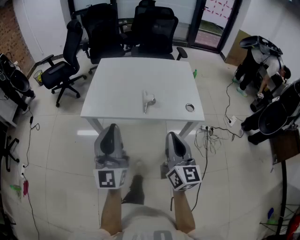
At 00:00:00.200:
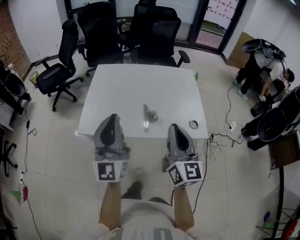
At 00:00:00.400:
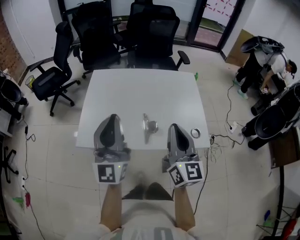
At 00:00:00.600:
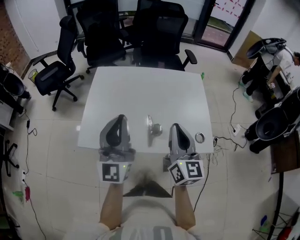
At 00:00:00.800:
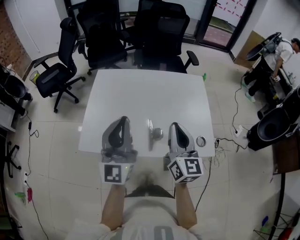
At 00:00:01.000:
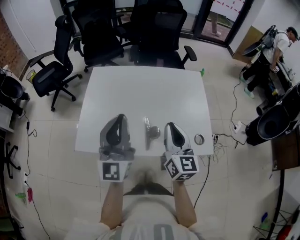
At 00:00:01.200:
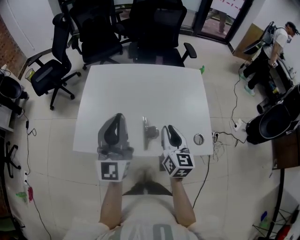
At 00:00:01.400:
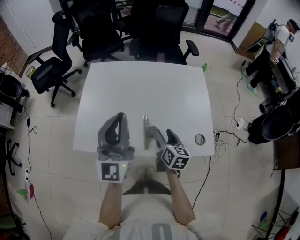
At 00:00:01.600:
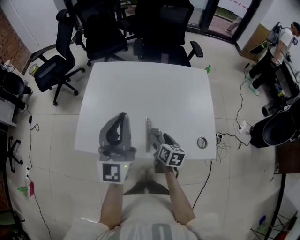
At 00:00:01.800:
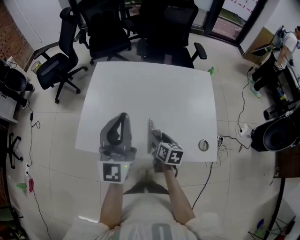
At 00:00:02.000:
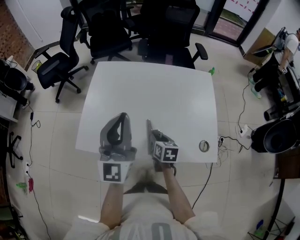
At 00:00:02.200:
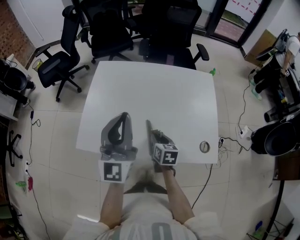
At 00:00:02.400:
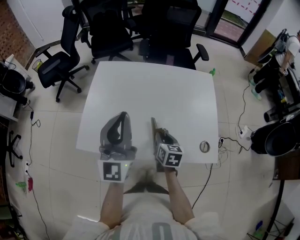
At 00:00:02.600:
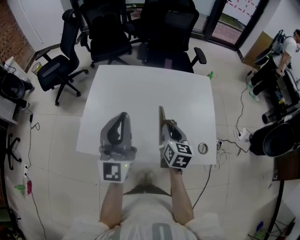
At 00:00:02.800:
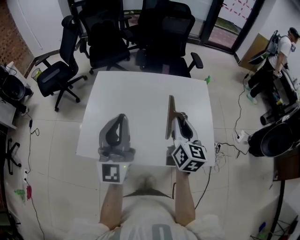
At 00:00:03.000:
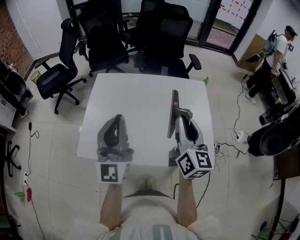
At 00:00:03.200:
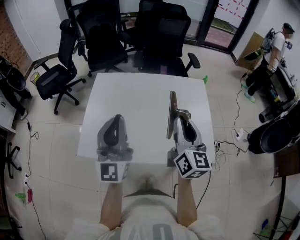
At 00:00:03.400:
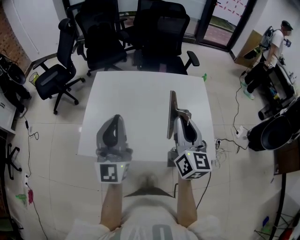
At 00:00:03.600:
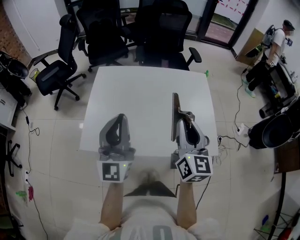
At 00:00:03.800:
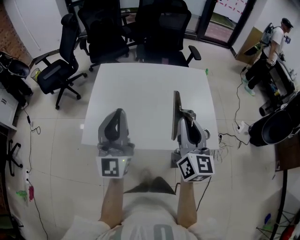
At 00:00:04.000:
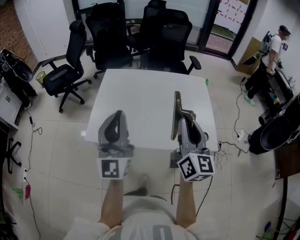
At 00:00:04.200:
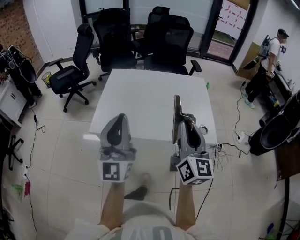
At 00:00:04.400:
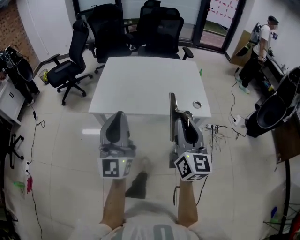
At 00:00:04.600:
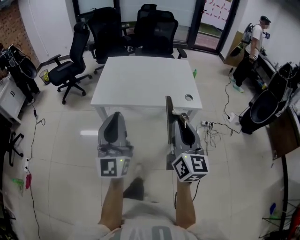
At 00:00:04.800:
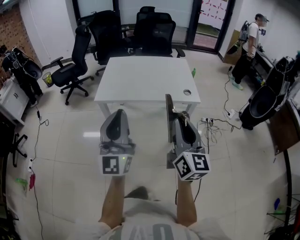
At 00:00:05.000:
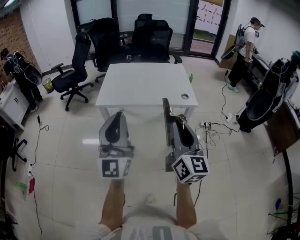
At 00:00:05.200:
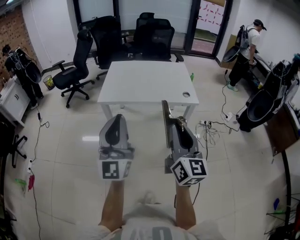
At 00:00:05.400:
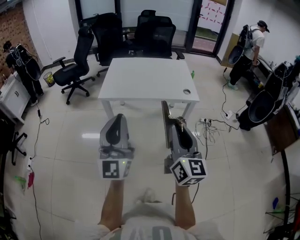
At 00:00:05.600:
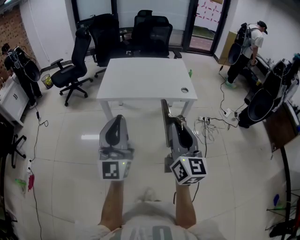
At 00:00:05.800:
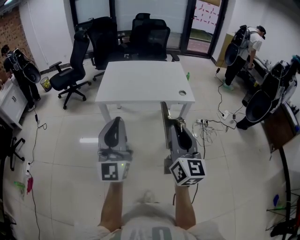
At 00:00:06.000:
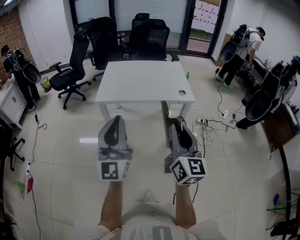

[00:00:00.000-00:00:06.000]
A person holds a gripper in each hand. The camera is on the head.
00:00:00.000 to 00:00:01.600: The left gripper shifts some 30 cm forward; the right gripper moves forward and downward, about 35 cm, points its fingers about 40 degrees further downward, and opens.
00:00:01.600 to 00:00:03.000: The right gripper is displaced upward by some 25 cm, points its fingers some 40 degrees further upward, and closes.
00:00:03.000 to 00:00:04.400: Both grippers travel together backward, roughly 30 cm.
00:00:04.400 to 00:00:06.000: The grippers both shift backward by about 20 cm.

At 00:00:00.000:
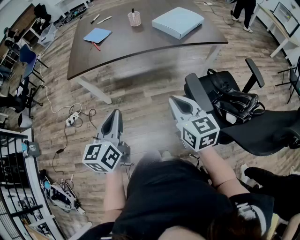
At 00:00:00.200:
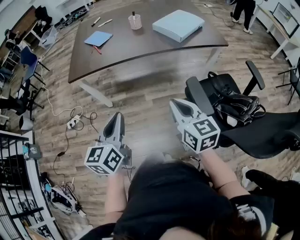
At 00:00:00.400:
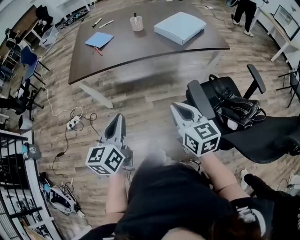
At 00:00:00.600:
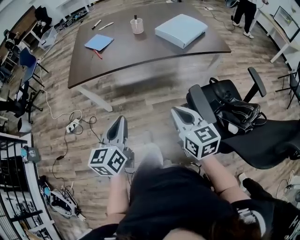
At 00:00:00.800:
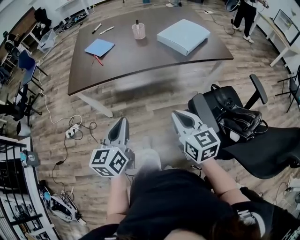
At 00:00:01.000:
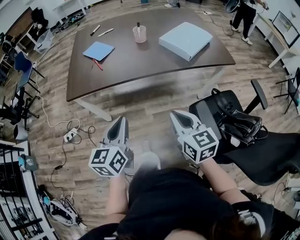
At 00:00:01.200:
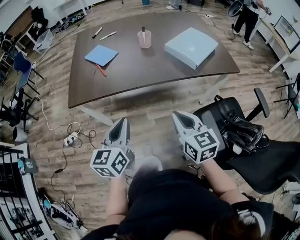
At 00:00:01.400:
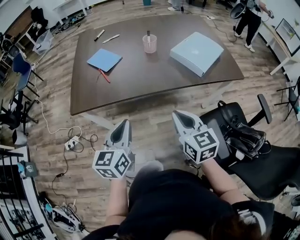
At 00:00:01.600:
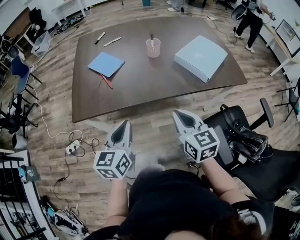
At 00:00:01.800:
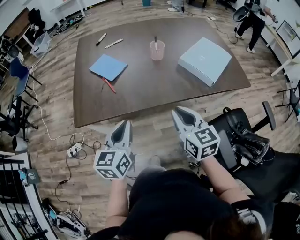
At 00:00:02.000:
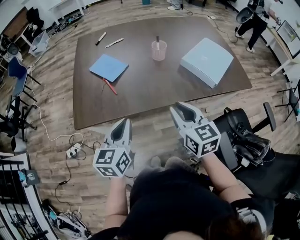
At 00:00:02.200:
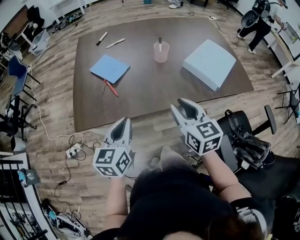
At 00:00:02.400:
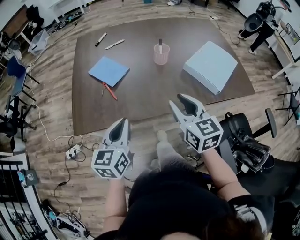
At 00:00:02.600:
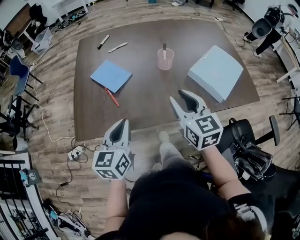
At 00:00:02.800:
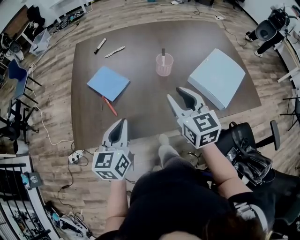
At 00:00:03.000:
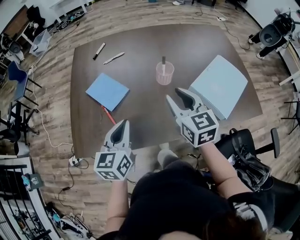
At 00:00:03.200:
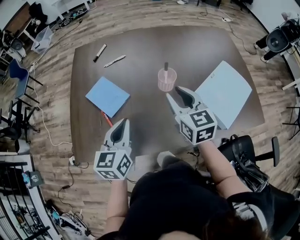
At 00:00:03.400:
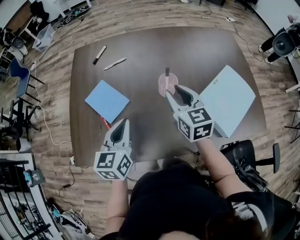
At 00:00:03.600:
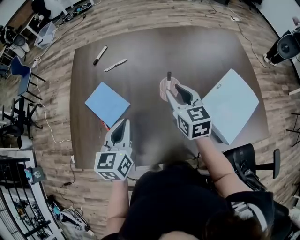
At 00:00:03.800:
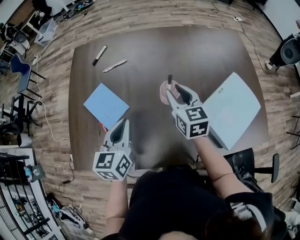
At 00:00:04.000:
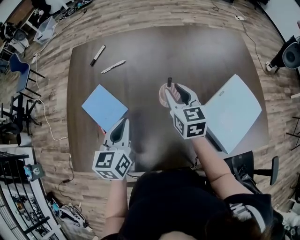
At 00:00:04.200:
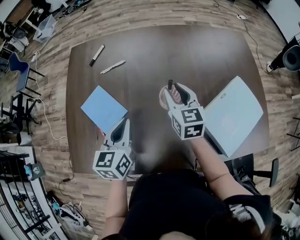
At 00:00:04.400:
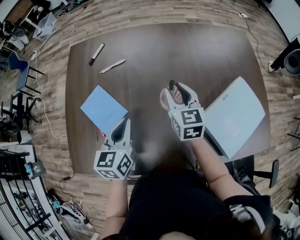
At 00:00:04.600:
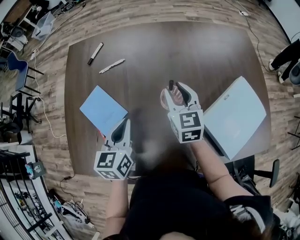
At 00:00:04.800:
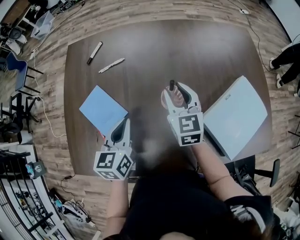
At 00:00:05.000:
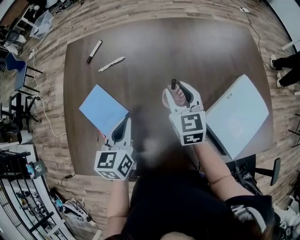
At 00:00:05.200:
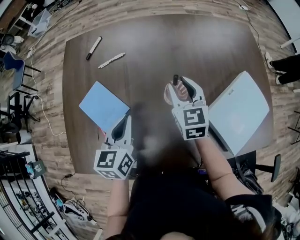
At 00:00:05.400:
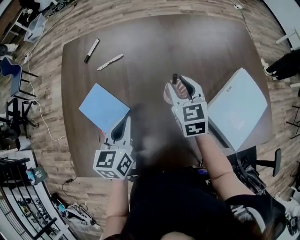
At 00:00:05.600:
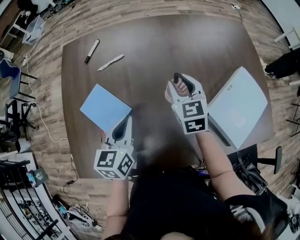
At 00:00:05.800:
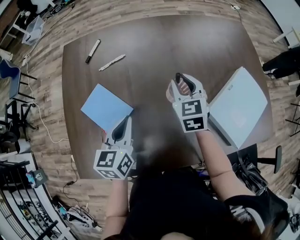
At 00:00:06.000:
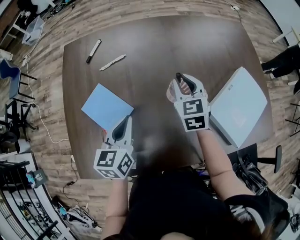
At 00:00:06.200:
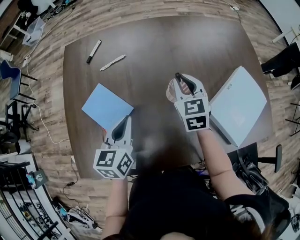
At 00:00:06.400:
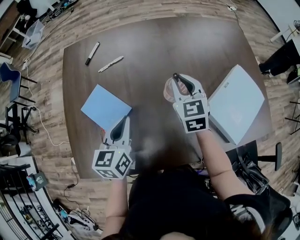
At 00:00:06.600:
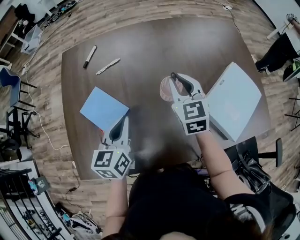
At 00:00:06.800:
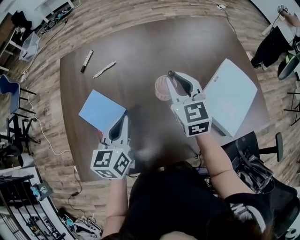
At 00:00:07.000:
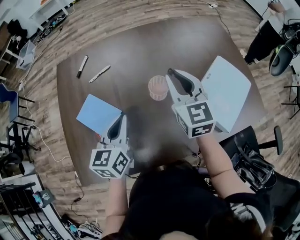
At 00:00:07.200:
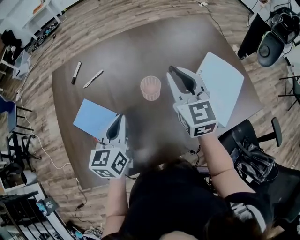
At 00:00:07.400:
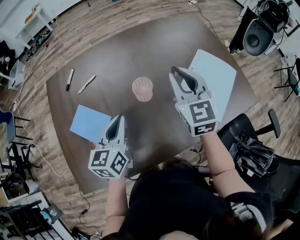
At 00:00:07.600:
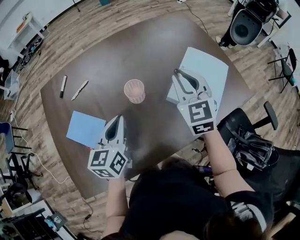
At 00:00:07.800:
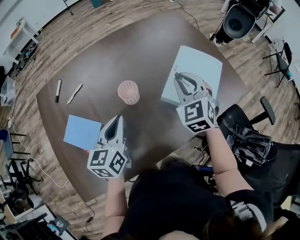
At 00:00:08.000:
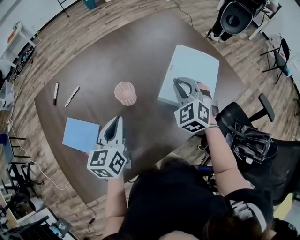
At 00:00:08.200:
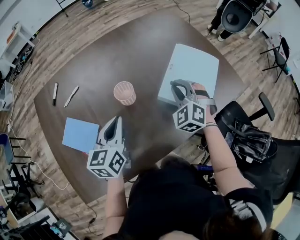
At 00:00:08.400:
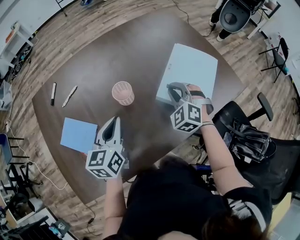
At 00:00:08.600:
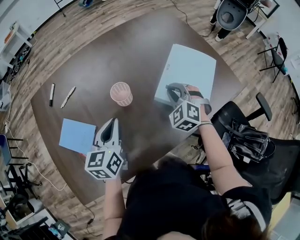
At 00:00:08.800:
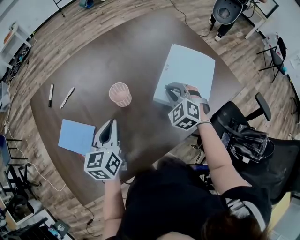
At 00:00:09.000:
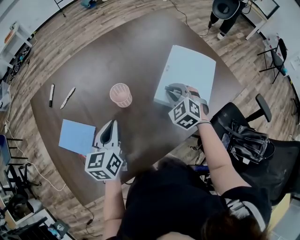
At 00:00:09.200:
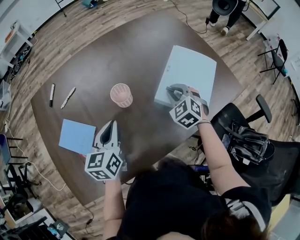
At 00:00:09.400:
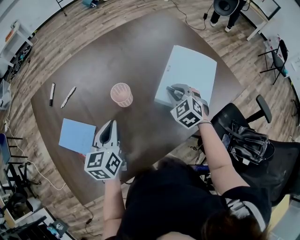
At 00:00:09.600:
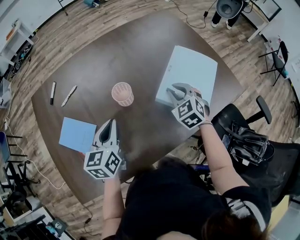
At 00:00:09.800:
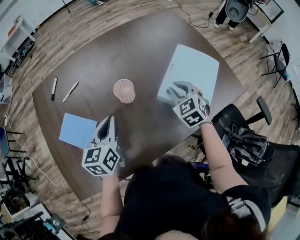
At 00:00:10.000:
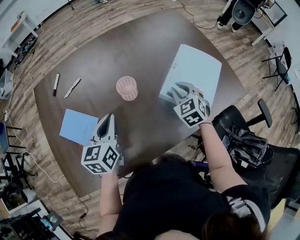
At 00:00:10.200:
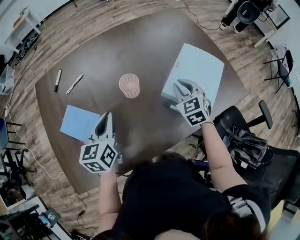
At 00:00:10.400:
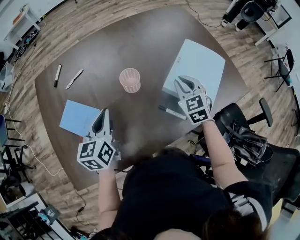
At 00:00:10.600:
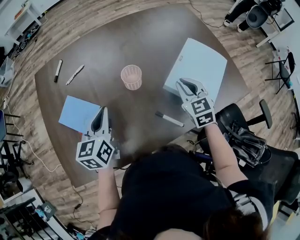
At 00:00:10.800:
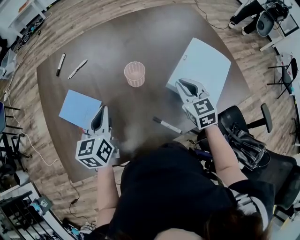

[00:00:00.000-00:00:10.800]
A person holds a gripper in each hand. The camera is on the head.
00:00:00.000 to 00:00:01.600: Both grippers move forward, about 25 cm.
00:00:01.600 to 00:00:03.000: Both grippers move forward, approximately 25 cm. The right gripper opens its fingers.
00:00:03.000 to 00:00:04.600: The right gripper heads forward and downward, covering about 20 cm. The left gripper travels forward by approximately 15 cm.
00:00:04.600 to 00:00:06.200: The grippers stay close to where they were, moving slightly.
00:00:06.200 to 00:00:07.800: The left gripper heads to the right, covering roughly 10 cm, and changes its angle by approximately 20 degrees; the right gripper moves to the right, backward and upward, some 20 cm, and changes its angle by some 30 degrees.
00:00:07.800 to 00:00:09.200: The right gripper travels downward by some 10 cm.
00:00:09.200 to 00:00:10.800: The right gripper ends up some 5 cm from where it was, and swivels about 30 degrees, while the left gripper shifts about 5 cm to the left.

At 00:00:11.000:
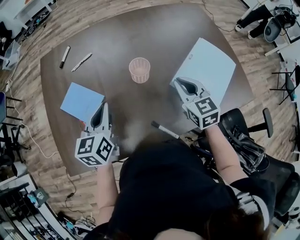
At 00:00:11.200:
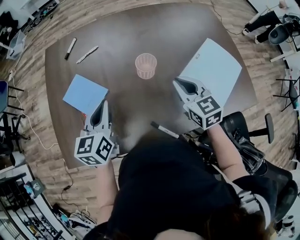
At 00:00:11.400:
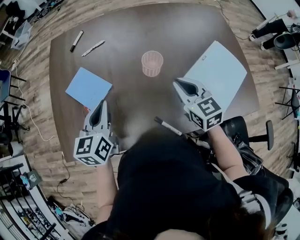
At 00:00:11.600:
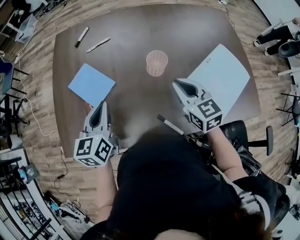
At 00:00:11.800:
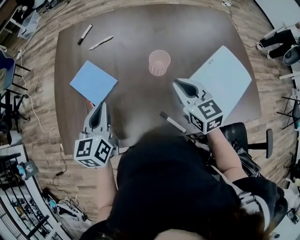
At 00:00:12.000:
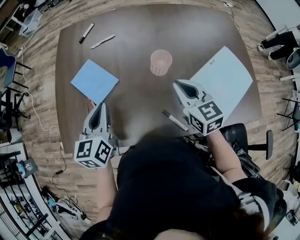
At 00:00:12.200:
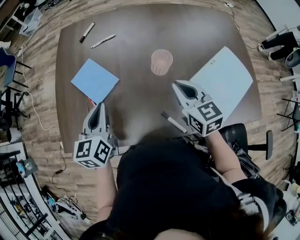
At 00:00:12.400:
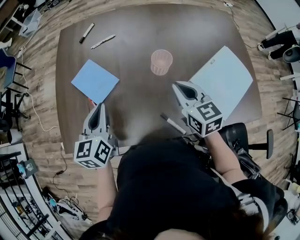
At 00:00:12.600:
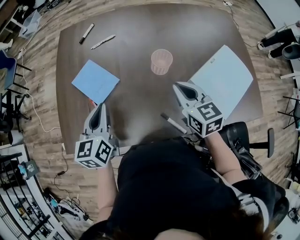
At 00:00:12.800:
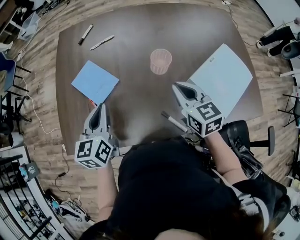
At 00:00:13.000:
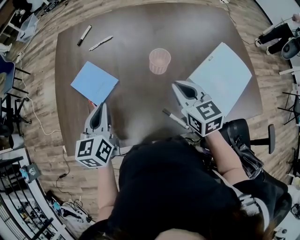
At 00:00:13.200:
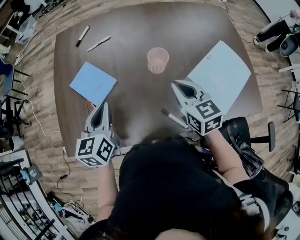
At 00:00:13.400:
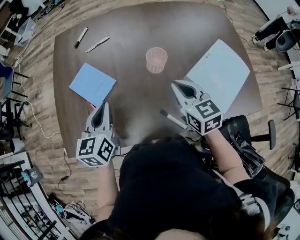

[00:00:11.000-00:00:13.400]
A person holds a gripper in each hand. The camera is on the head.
00:00:11.000 to 00:00:12.200: Both grippers move to the left, about 10 cm.
00:00:12.200 to 00:00:13.400: The grippers make only small movements.

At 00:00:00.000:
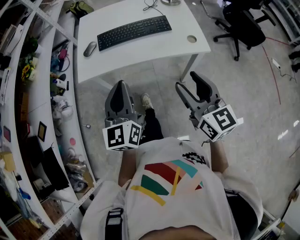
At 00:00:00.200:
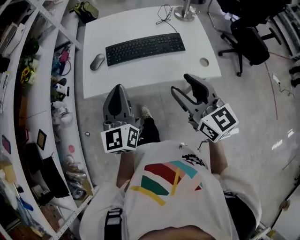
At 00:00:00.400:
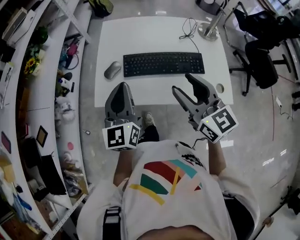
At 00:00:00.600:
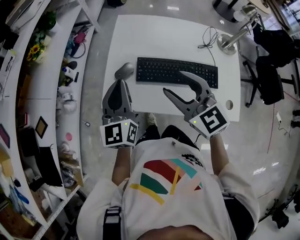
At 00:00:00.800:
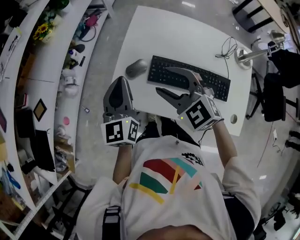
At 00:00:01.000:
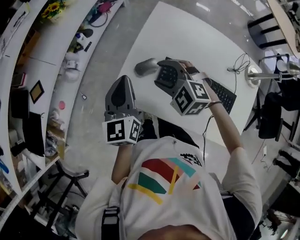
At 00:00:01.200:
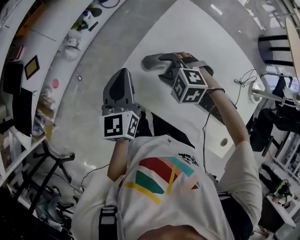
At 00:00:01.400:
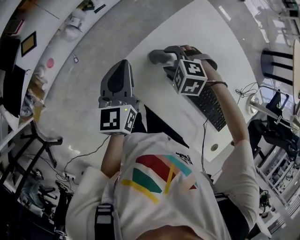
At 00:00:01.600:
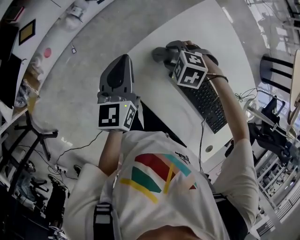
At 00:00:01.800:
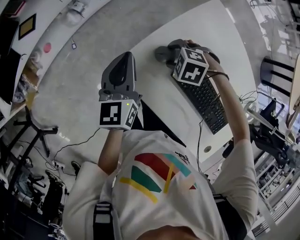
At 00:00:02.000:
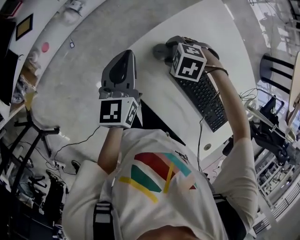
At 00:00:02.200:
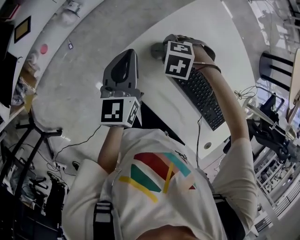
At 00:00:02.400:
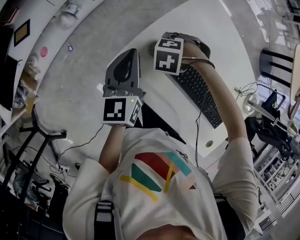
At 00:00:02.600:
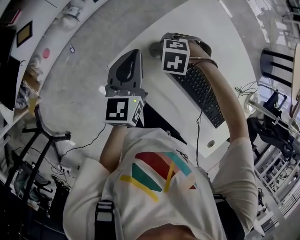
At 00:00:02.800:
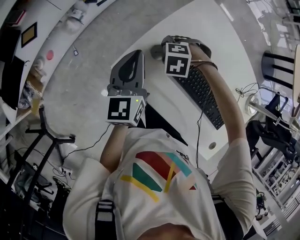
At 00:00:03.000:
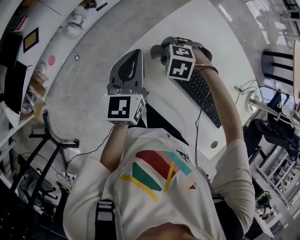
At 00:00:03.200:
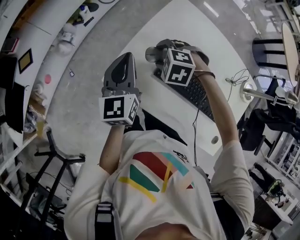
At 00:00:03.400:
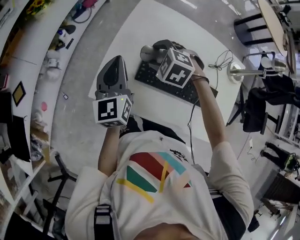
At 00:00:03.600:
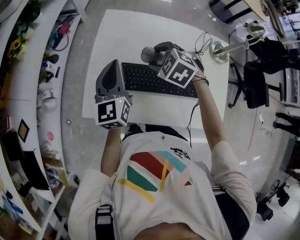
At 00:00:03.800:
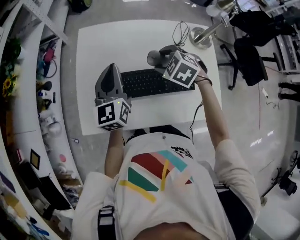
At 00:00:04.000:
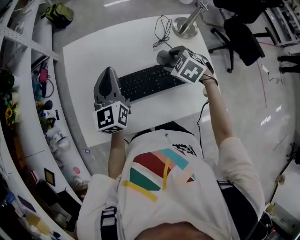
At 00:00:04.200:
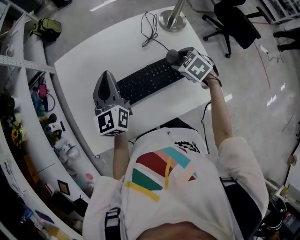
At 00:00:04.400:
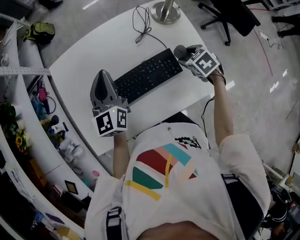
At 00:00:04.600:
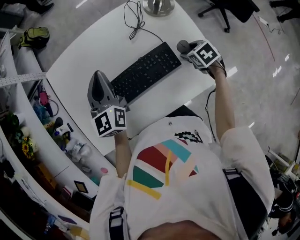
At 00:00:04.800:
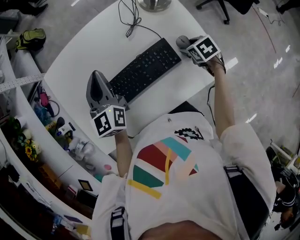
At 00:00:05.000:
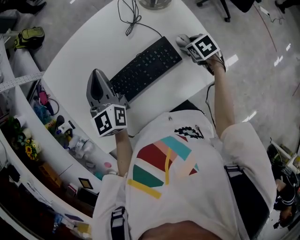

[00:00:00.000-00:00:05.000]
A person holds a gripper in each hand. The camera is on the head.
00:00:00.000 to 00:00:01.600: The pair of grippers is taken some 50 cm. The right gripper angles its fingers downward, by some 70 degrees. Meanwhile the left gripper changes its angle by some 50 degrees.
00:00:01.600 to 00:00:03.400: The left gripper moves approximately 15 cm, and turns by some 20 degrees. Meanwhile the right gripper travels upward by approximately 10 cm, and swivels some 30 degrees.
00:00:03.400 to 00:00:05.000: The right gripper ends up some 50 cm from where it was, and rotates around the line of its fingers by approximately 90 degrees, clockwise from behind, while the left gripper shifts by some 35 cm, and changes its angle by approximately 40 degrees.
